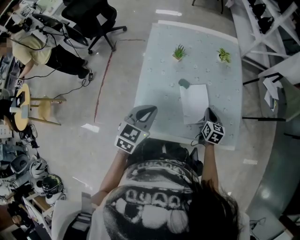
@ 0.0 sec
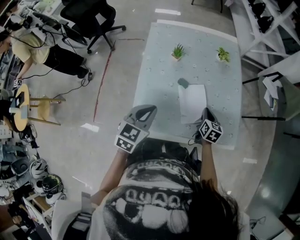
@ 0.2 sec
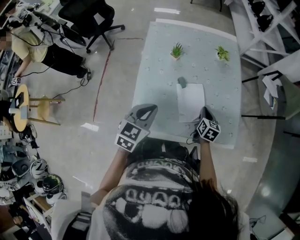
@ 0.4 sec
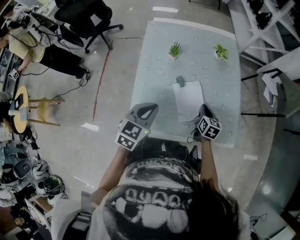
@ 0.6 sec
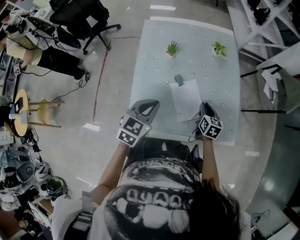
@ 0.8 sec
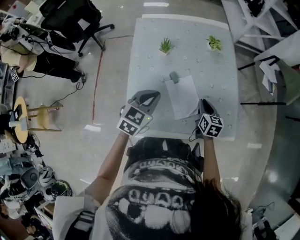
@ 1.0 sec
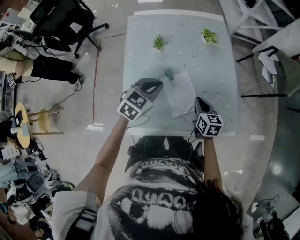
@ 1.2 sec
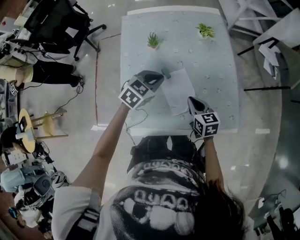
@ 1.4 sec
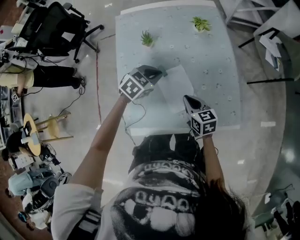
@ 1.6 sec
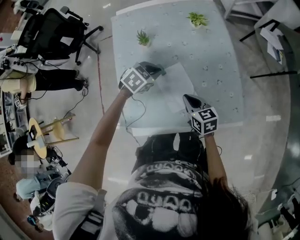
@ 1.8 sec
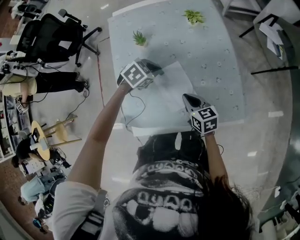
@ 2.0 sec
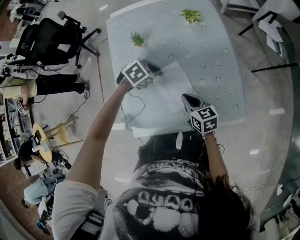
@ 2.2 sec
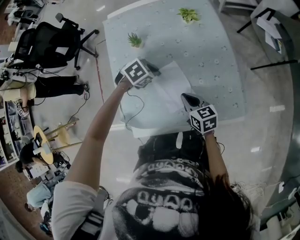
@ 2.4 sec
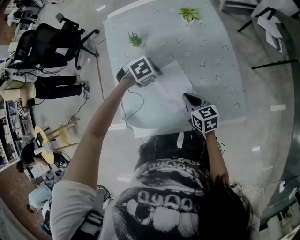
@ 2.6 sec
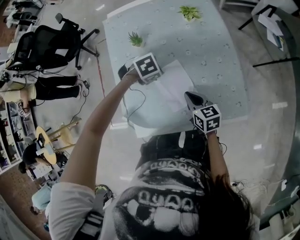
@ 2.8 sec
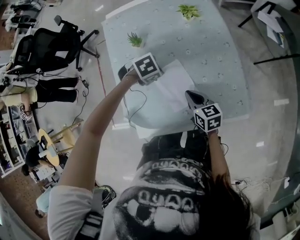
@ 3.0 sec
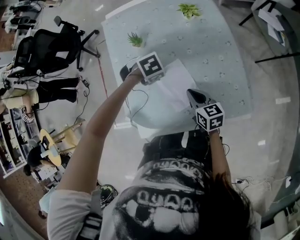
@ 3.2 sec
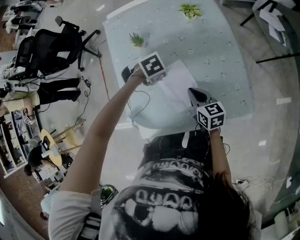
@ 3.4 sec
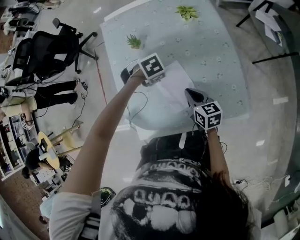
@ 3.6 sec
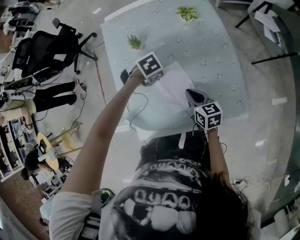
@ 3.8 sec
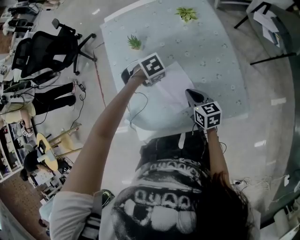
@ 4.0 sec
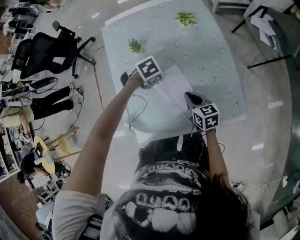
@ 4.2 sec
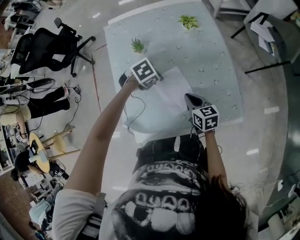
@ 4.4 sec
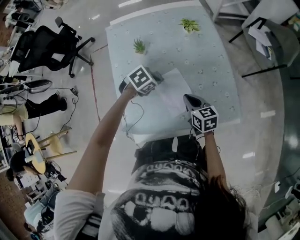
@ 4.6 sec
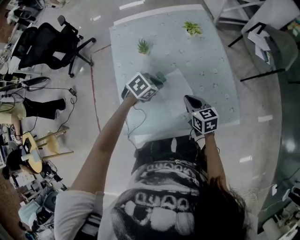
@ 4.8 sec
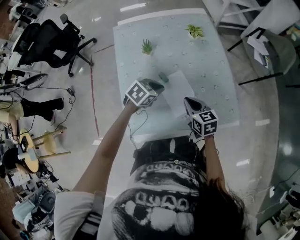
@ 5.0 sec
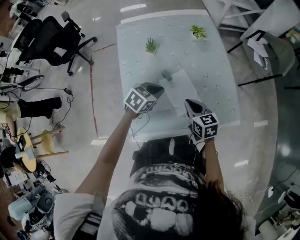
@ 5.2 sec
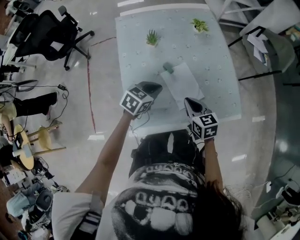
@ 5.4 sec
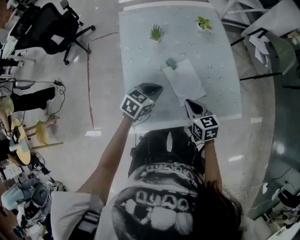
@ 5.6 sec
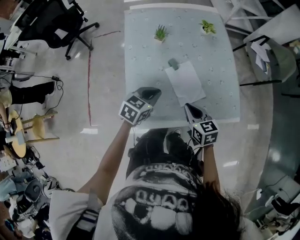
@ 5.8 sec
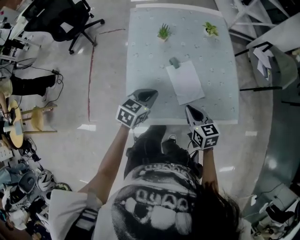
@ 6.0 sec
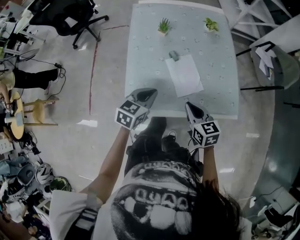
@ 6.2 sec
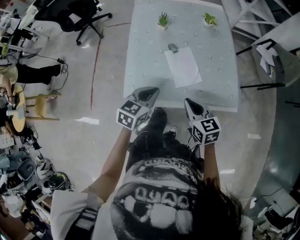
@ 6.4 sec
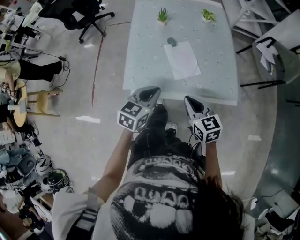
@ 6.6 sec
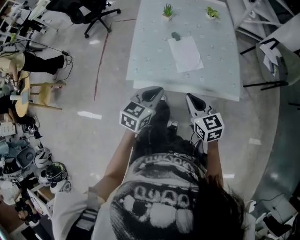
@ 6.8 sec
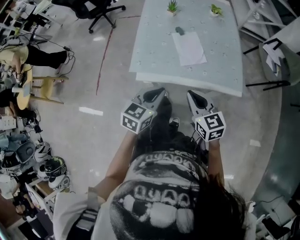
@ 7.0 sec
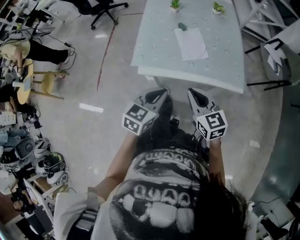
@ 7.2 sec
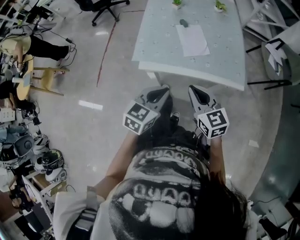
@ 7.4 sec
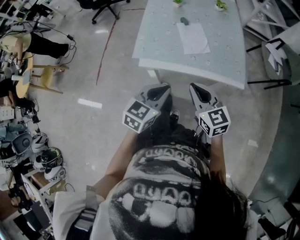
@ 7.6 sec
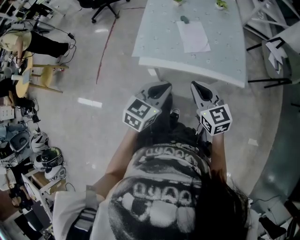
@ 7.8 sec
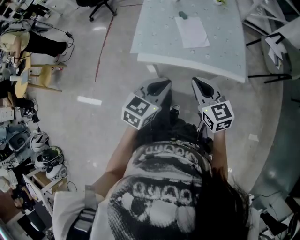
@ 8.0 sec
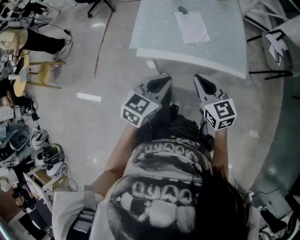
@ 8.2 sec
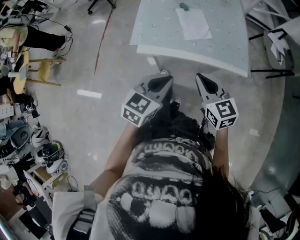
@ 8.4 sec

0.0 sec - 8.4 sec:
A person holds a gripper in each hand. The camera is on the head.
0.0 sec - 1.4 sec: The right gripper moves about 5 cm. The left gripper heads forward, to the right and downward, covering about 20 cm, and swivels approximately 30 degrees.
1.4 sec - 2.8 sec: The left gripper heads downward, covering roughly 10 cm, and tips its fingers downward by about 30 degrees.
2.8 sec - 4.2 sec: The grippers make only small movements.
4.2 sec - 5.6 sec: The left gripper changes place by roughly 15 cm, and tips its fingers upward by some 30 degrees; the right gripper ends up about 10 cm from where it was.
5.6 sec - 7.0 sec: The right gripper heads backward and upward, covering about 20 cm, and rotates some 20 degrees, while the left gripper travels backward by about 25 cm, and changes its angle by some 30 degrees.
7.0 sec - 8.4 sec: The left gripper heads backward, covering some 5 cm.

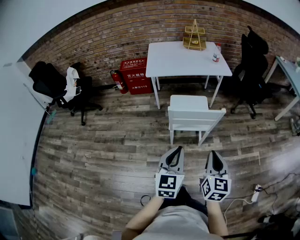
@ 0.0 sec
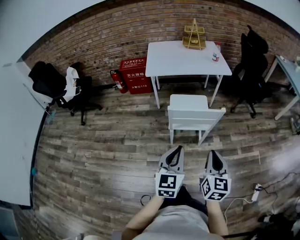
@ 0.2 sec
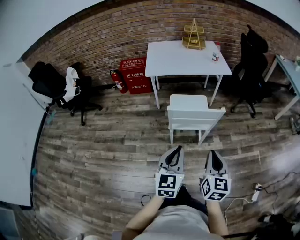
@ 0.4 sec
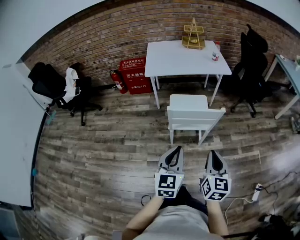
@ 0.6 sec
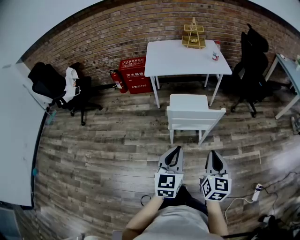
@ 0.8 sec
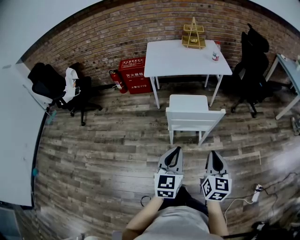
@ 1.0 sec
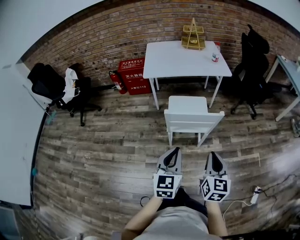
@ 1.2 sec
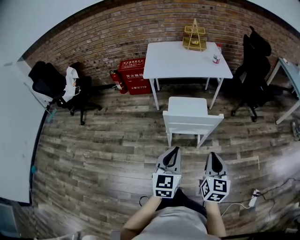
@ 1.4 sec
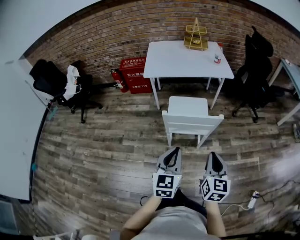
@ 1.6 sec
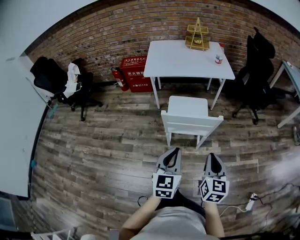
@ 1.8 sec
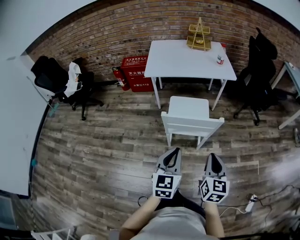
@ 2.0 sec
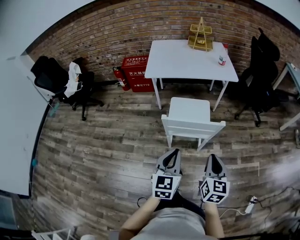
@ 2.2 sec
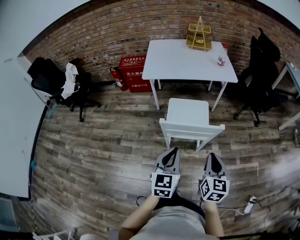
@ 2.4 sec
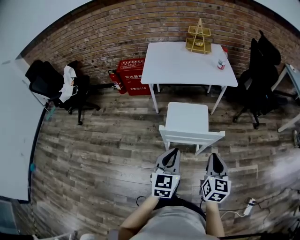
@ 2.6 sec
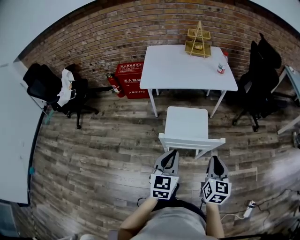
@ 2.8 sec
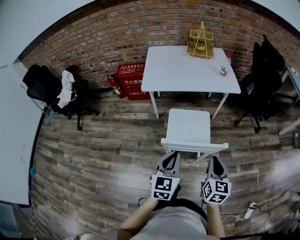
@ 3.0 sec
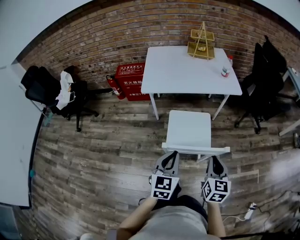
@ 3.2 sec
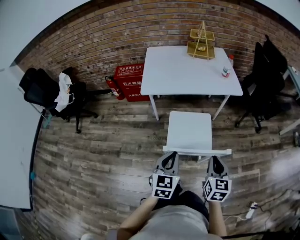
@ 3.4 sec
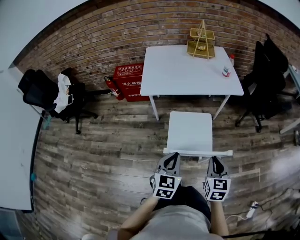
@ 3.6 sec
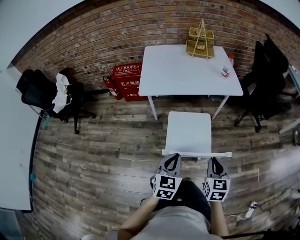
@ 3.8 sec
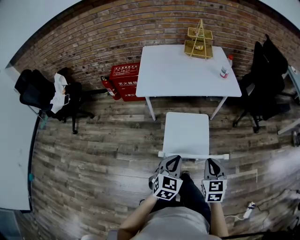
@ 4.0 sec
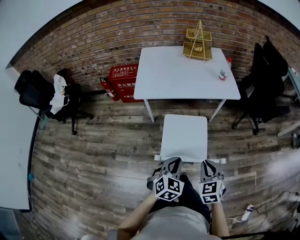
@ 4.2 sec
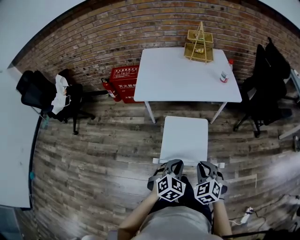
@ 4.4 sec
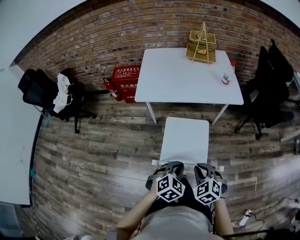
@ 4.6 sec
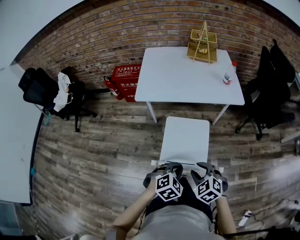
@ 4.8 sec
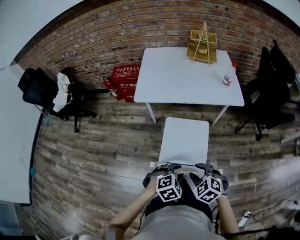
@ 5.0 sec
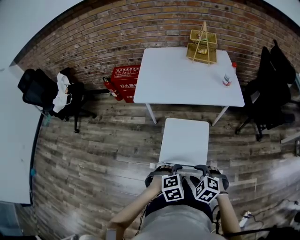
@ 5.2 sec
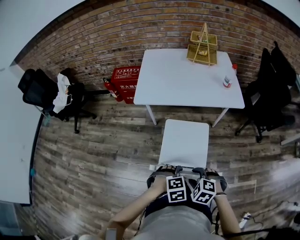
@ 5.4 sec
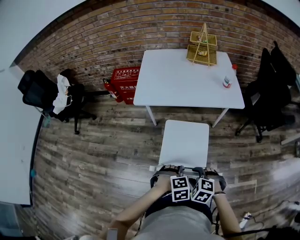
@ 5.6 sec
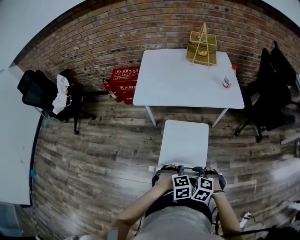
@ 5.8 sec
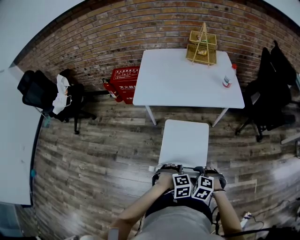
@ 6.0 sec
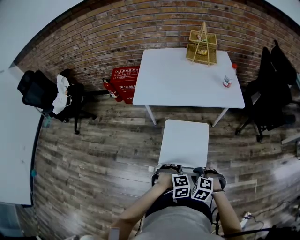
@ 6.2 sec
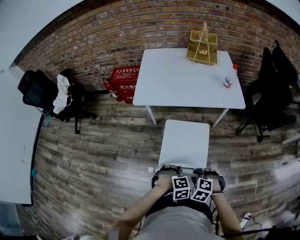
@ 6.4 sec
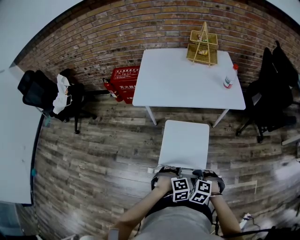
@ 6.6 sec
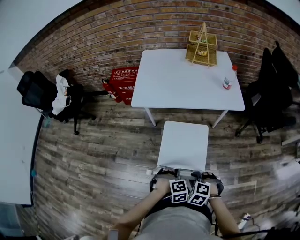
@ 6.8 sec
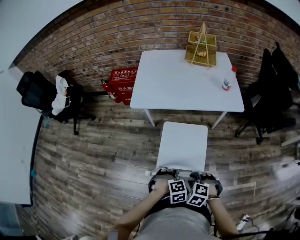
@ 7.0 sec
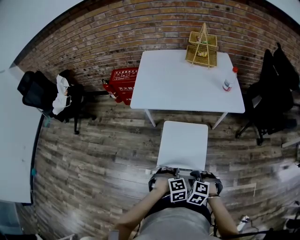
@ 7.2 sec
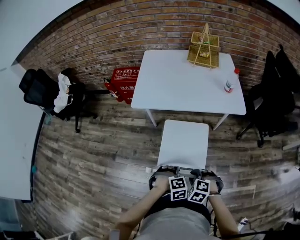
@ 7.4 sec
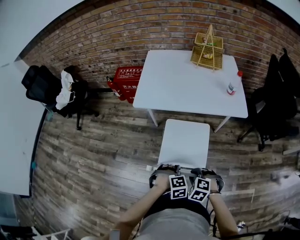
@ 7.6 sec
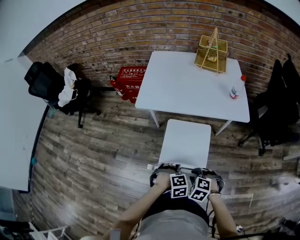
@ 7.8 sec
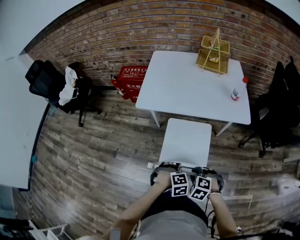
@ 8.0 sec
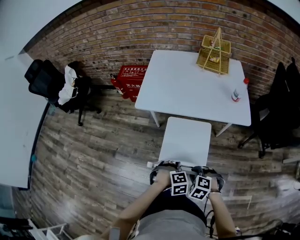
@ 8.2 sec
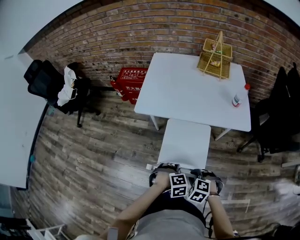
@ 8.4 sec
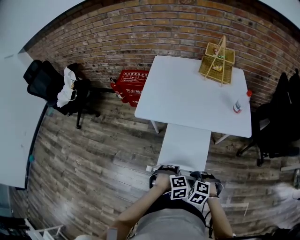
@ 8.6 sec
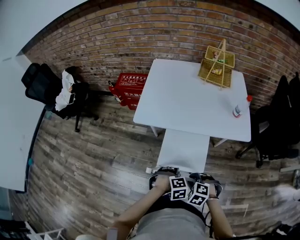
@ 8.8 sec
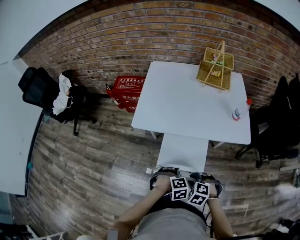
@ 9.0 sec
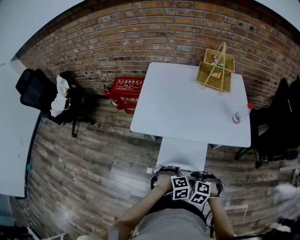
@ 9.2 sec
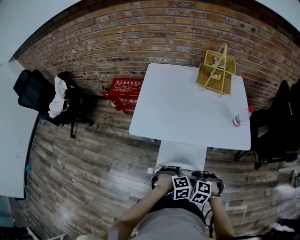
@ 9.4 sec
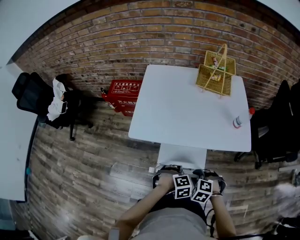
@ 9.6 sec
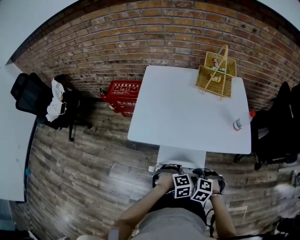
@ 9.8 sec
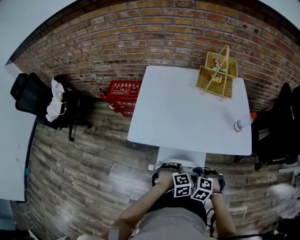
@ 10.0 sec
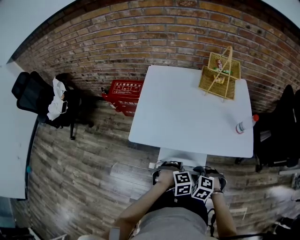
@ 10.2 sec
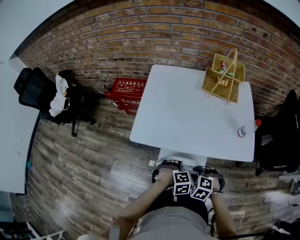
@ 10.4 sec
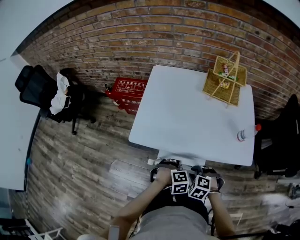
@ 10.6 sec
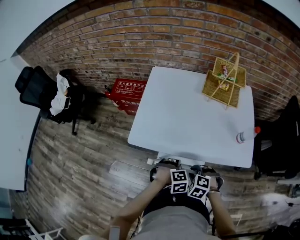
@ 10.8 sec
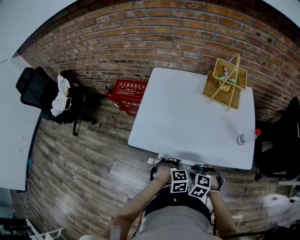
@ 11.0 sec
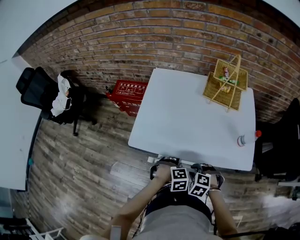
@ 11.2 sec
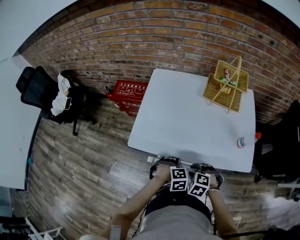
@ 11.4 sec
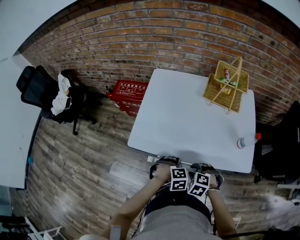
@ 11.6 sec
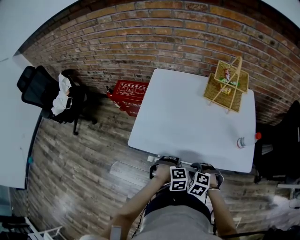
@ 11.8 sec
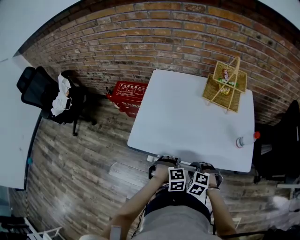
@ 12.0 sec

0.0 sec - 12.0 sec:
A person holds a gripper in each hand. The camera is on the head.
0.0 sec - 1.6 sec: The left gripper changes place by roughly 5 cm; the right gripper is displaced forward by roughly 5 cm.
1.6 sec - 3.0 sec: The two grippers go approximately 15 cm forward.
3.0 sec - 4.4 sec: The left gripper is displaced downward and forward by approximately 10 cm, and changes its angle by about 40 degrees, while the right gripper travels forward and downward by approximately 10 cm, and rolls counterclockwise, seen from behind, by roughly 50 degrees.
4.4 sec - 6.0 sec: The grippers both shift downward by some 10 cm. The left gripper angles its fingers downward, by roughly 40 degrees, and opens its fingers; the right gripper turns by roughly 40 degrees, and opens up.
6.0 sec - 7.6 sec: The left gripper shifts by about 5 cm, and closes up; the right gripper changes place by some 5 cm, and closes.
7.6 sec - 9.0 sec: The left gripper ends up some 15 cm from where it was, while the right gripper moves roughly 15 cm.
9.0 sec - 10.4 sec: The left gripper ends up approximately 15 cm from where it was; the right gripper ends up approximately 15 cm from where it was.
10.4 sec - 12.0 sec: The right gripper changes place by about 5 cm; the left gripper moves approximately 5 cm.

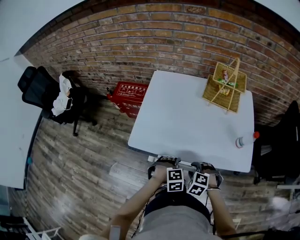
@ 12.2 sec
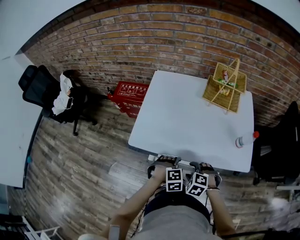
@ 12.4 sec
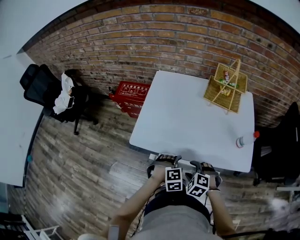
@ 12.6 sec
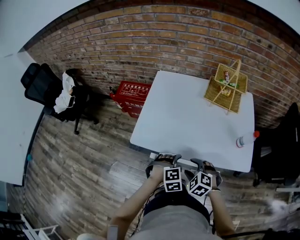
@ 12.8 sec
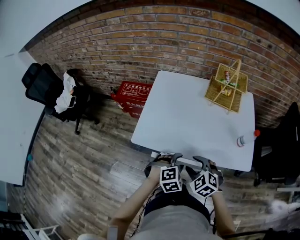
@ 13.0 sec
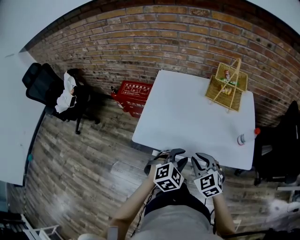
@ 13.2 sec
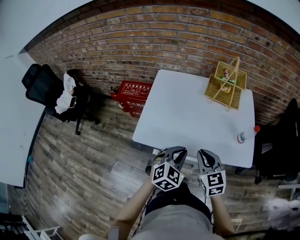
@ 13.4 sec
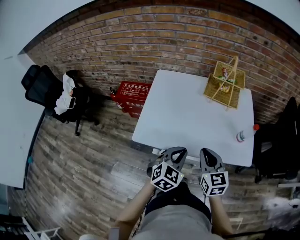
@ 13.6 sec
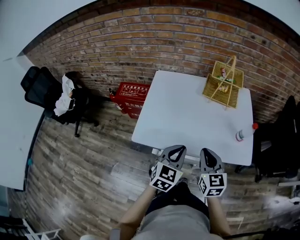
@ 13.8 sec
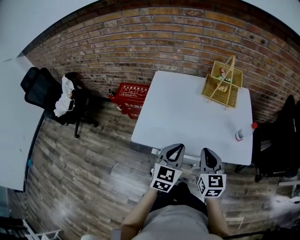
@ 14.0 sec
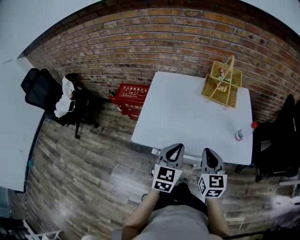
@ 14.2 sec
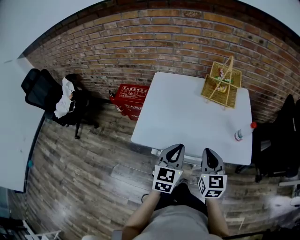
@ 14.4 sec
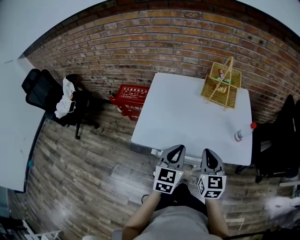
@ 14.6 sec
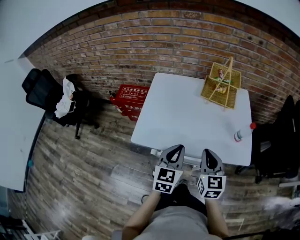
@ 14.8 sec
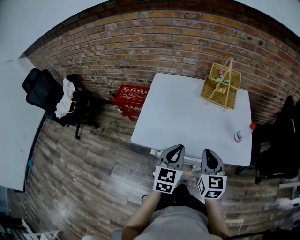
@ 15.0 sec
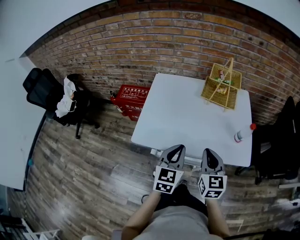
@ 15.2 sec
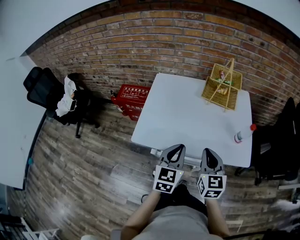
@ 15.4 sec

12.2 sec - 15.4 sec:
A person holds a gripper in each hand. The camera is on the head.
12.2 sec - 13.8 sec: The two grippers go some 20 cm upward. The left gripper angles its fingers upward, by some 40 degrees, and closes its fingers; the right gripper tips its fingers upward by about 50 degrees, and closes up.
13.8 sec - 15.4 sec: The grippers stay close to where they were, moving slightly.
